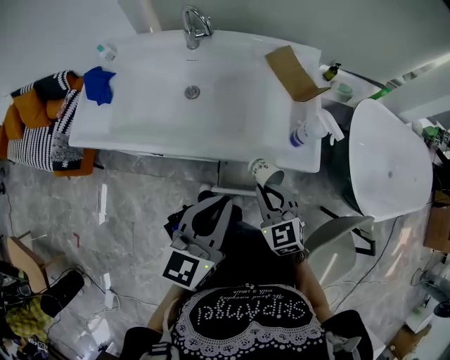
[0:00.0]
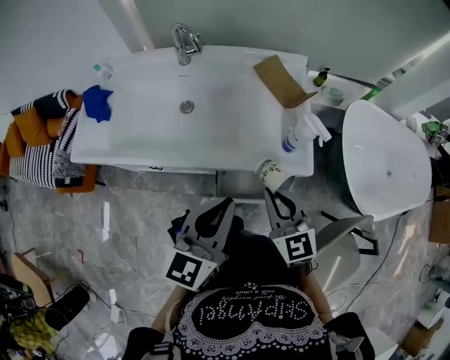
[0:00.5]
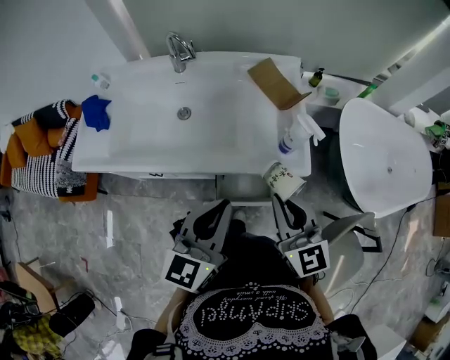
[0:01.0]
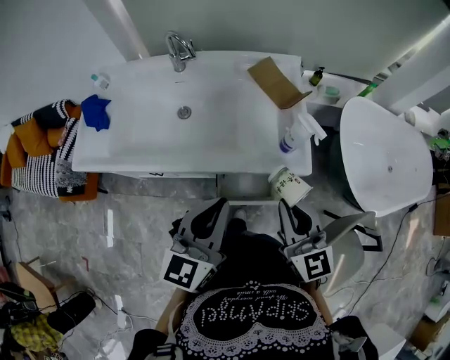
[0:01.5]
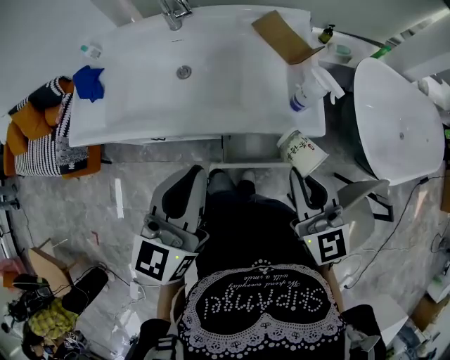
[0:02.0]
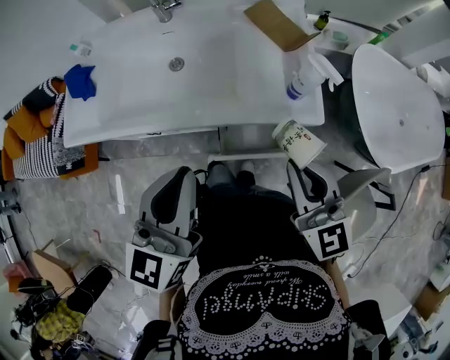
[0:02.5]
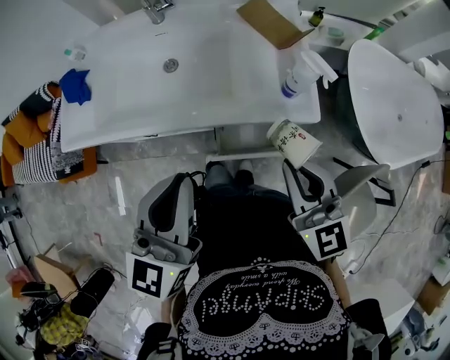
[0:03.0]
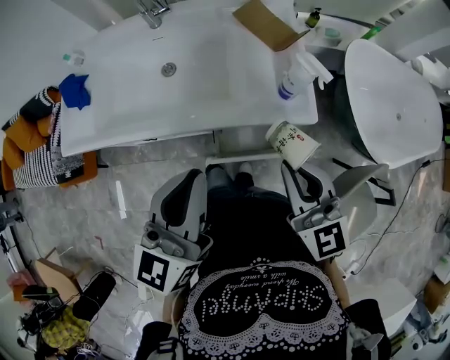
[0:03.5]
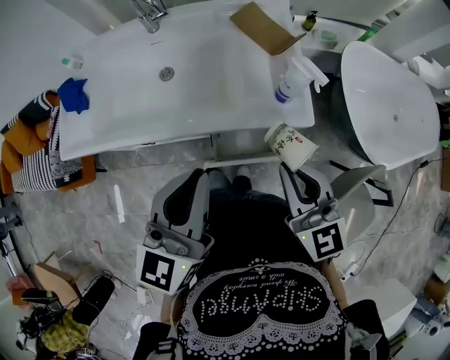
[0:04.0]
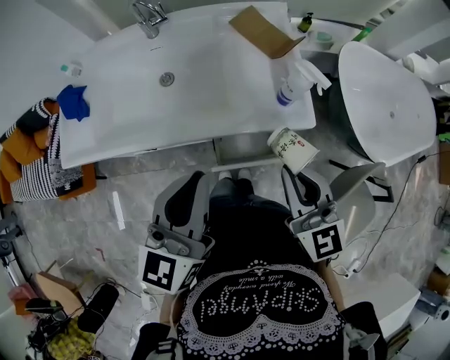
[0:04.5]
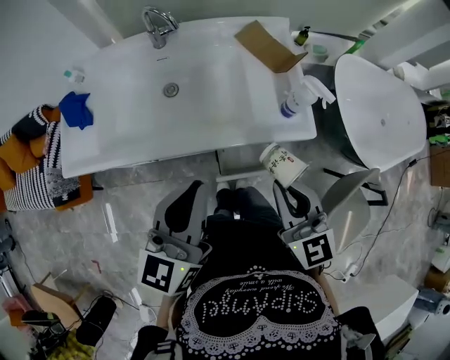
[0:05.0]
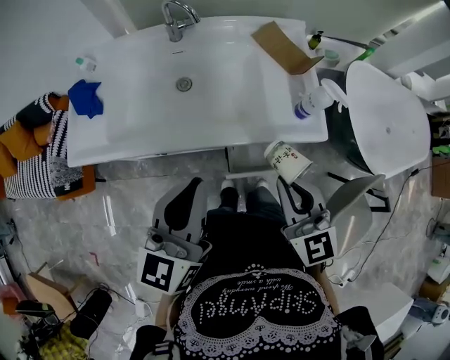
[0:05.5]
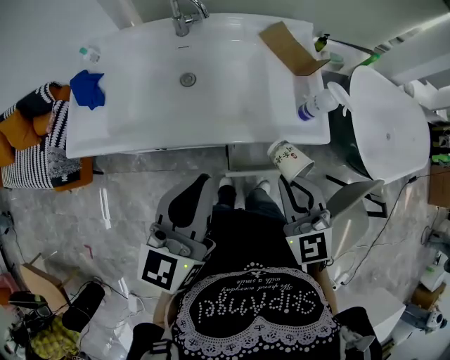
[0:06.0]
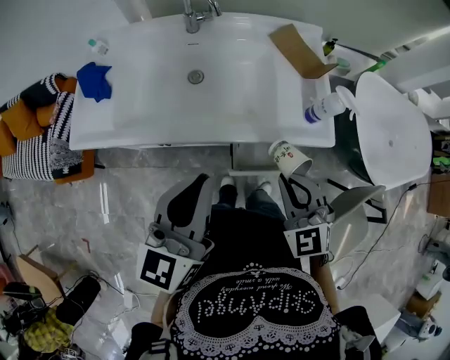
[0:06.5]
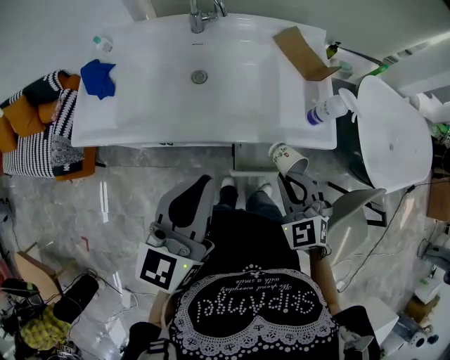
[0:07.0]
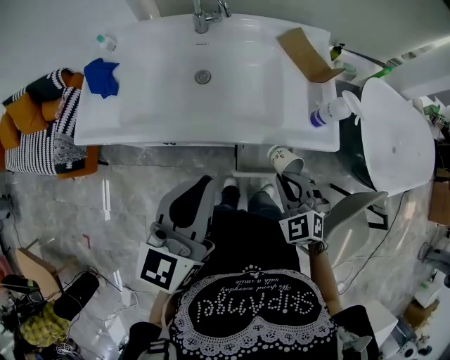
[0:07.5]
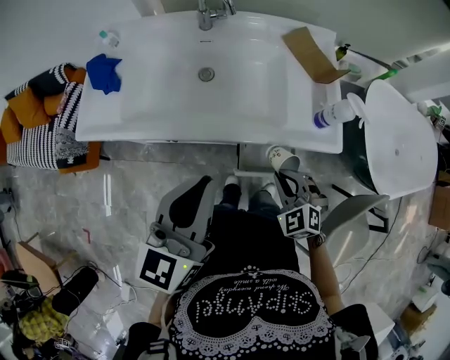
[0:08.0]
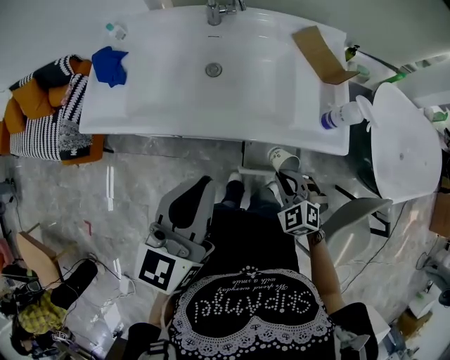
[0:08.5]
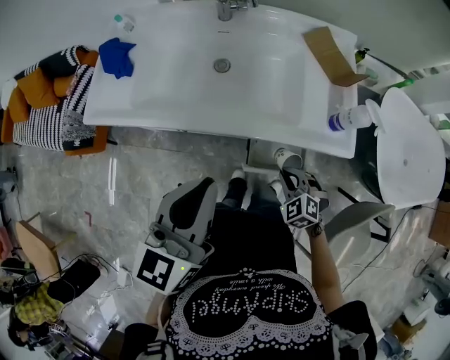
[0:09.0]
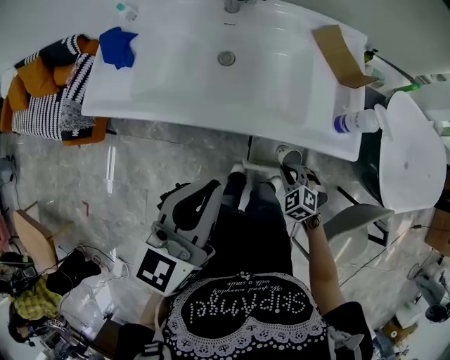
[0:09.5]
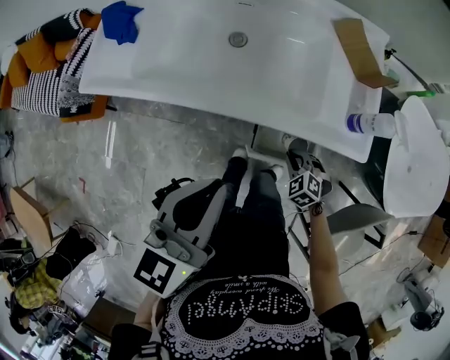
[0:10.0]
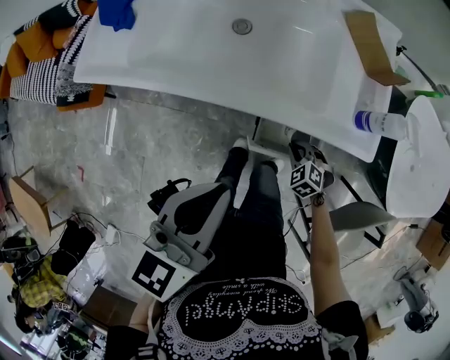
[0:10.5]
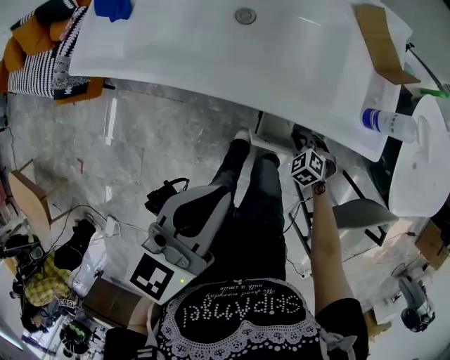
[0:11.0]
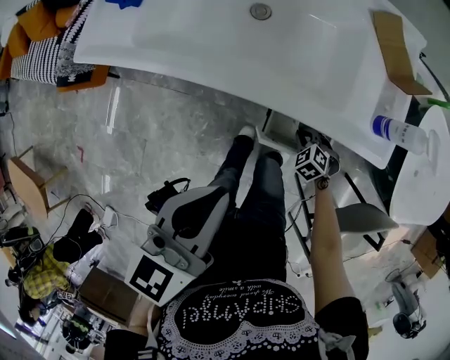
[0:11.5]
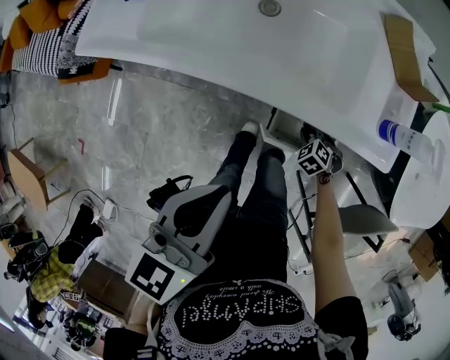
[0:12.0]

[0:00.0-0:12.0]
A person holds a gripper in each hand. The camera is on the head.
0:00.0 to 0:02.0: The left gripper moves approximately 5 cm. Meanwhile the right gripper shifts approximately 15 cm upward, and rotates some 30 degrees.
0:02.0 to 0:04.0: The grippers move only a little.
0:04.0 to 0:06.0: The grippers both shift to the left by approximately 10 cm. The right gripper swivels roughly 30 degrees.
0:06.0 to 0:08.0: The right gripper goes some 15 cm downward, and rotates some 30 degrees.
0:08.0 to 0:10.0: The right gripper heads downward, covering about 15 cm.
0:10.0 to 0:12.0: The right gripper travels downward by roughly 10 cm. Meanwhile the left gripper heads downward, covering approximately 5 cm.

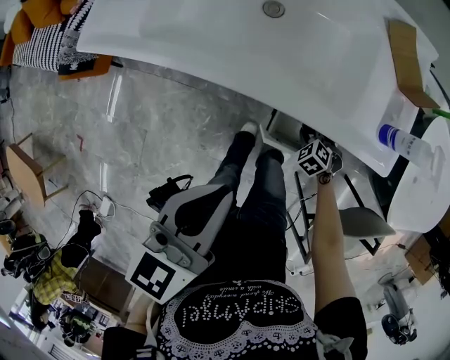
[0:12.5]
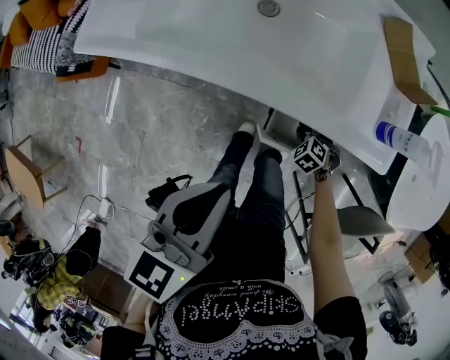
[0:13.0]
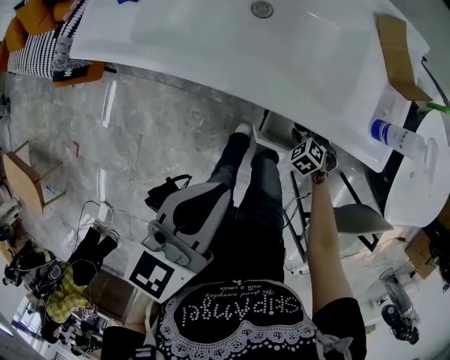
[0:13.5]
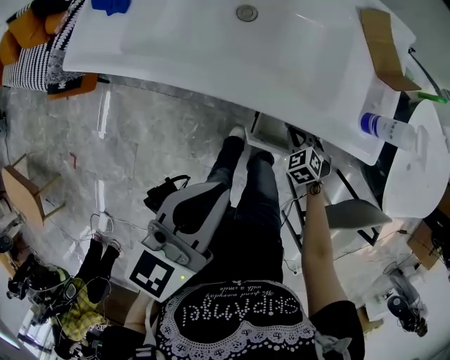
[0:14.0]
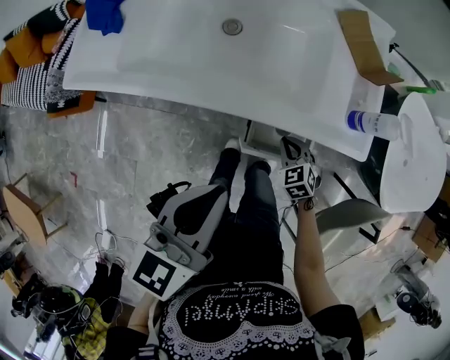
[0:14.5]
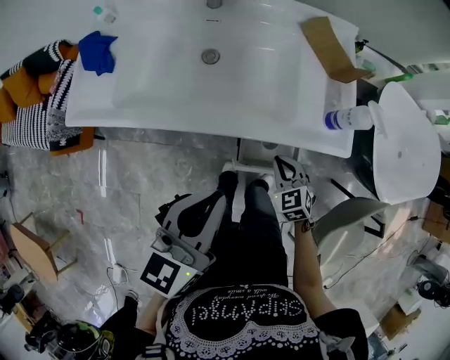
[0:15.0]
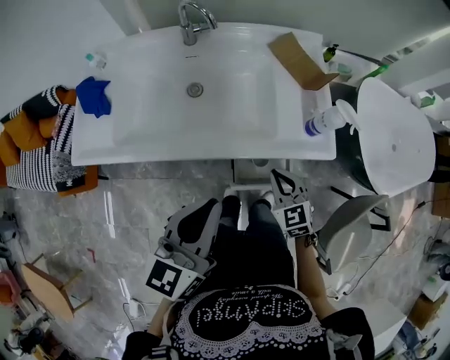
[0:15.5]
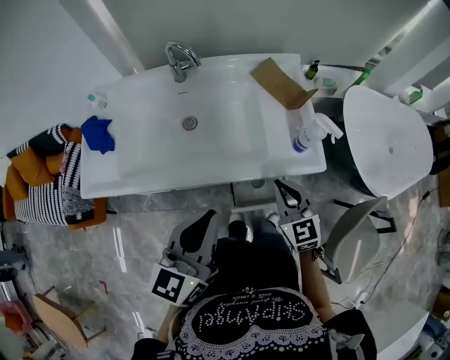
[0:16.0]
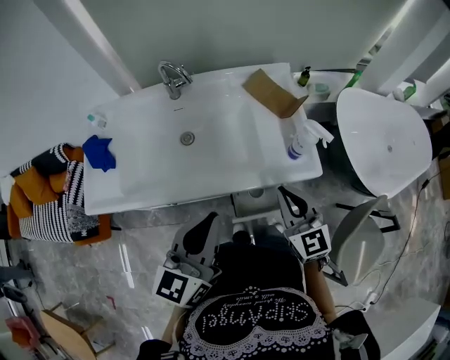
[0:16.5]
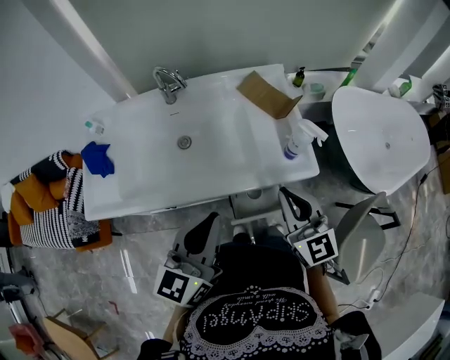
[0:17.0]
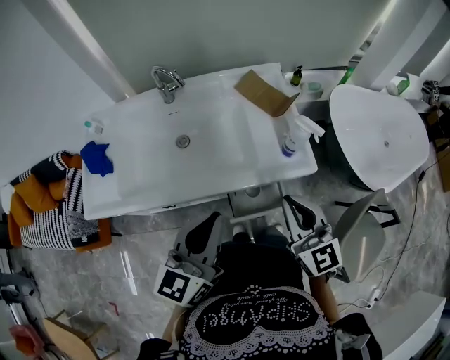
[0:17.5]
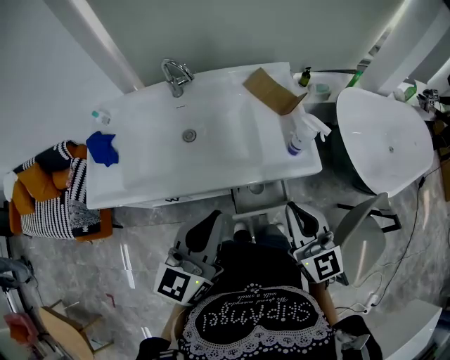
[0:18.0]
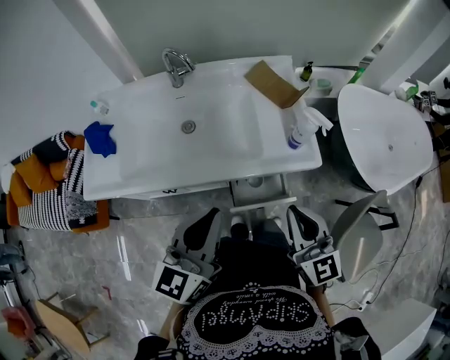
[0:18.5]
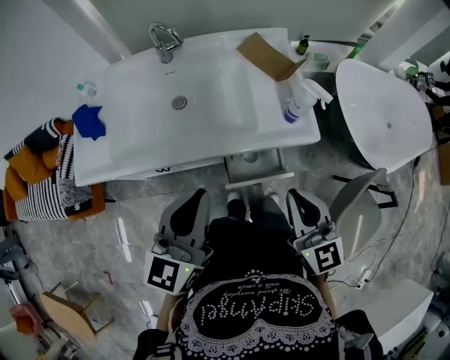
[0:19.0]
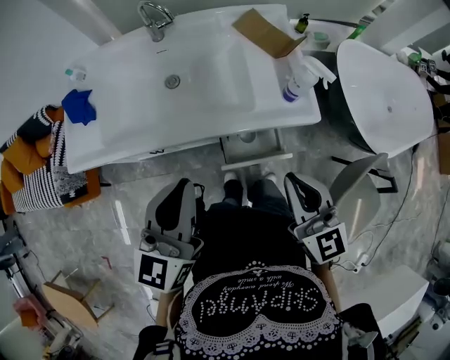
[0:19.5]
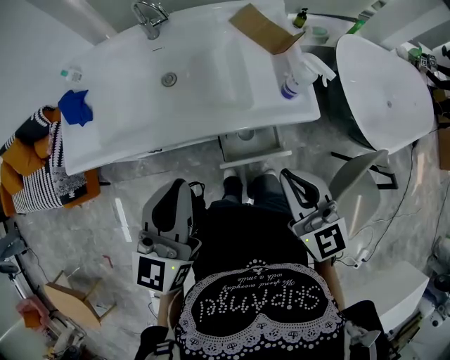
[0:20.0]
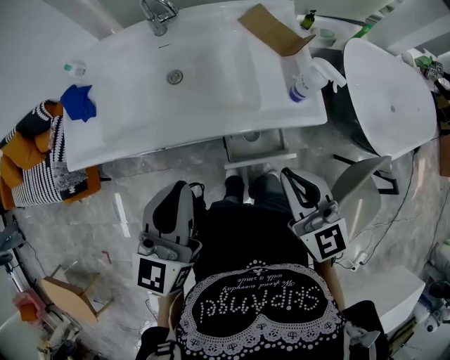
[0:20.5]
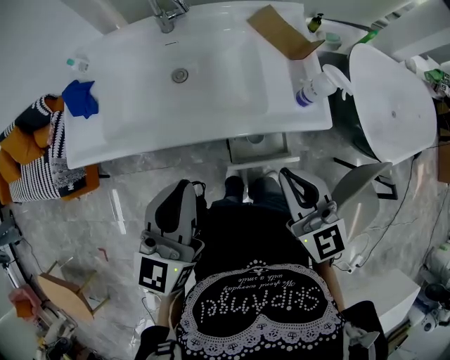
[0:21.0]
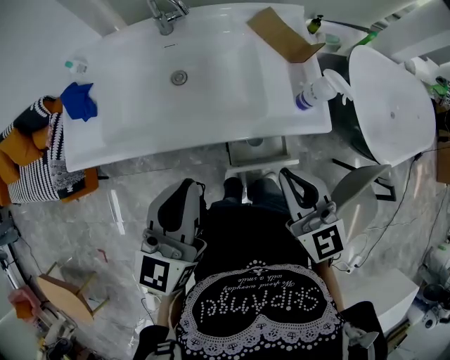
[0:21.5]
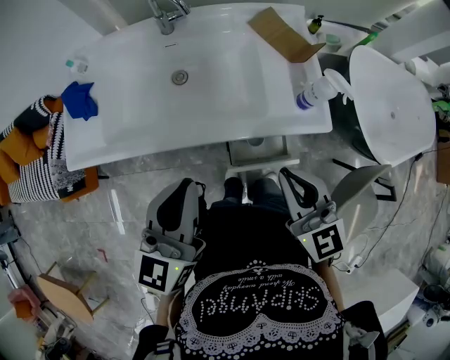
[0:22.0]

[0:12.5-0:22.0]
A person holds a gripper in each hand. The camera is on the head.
0:12.5 to 0:14.5: The right gripper is displaced upward by roughly 10 cm, and swivels approximately 30 degrees.
0:14.5 to 0:16.5: The left gripper travels upward by roughly 10 cm; the right gripper shifts roughly 30 cm upward, and tilts its fingers approximately 40 degrees upward.
0:16.5 to 0:18.0: The right gripper is displaced backward and upward by approximately 10 cm.
0:18.0 to 0:20.0: The grippers make only small movements.
0:20.0 to 0:22.0: The right gripper ends up about 5 cm from where it was.

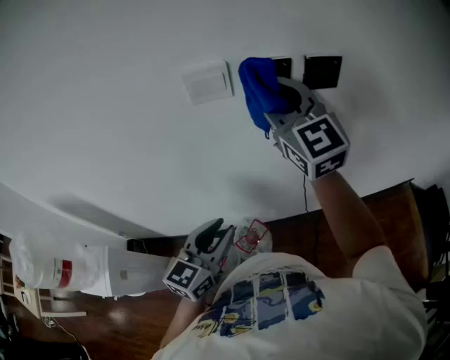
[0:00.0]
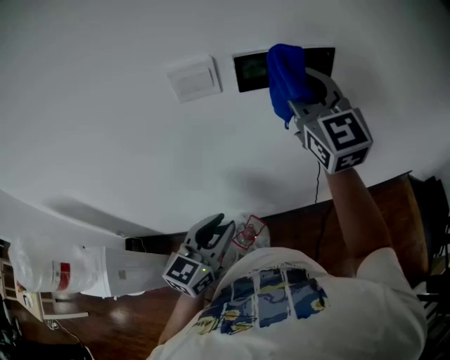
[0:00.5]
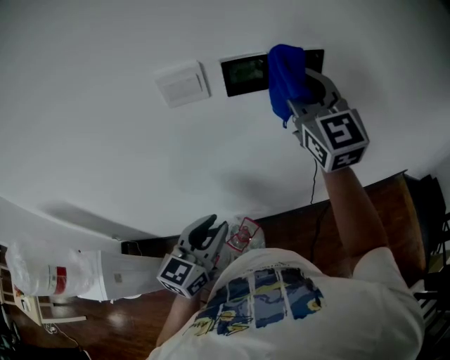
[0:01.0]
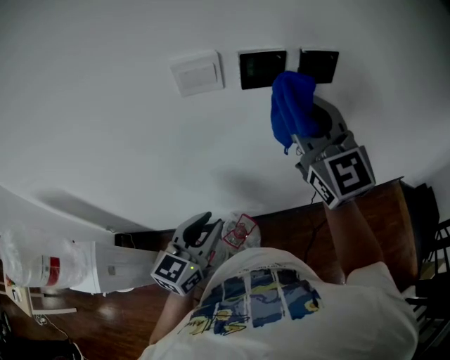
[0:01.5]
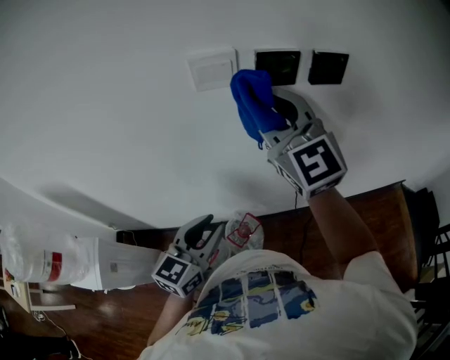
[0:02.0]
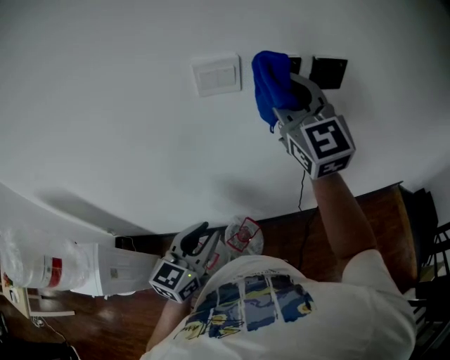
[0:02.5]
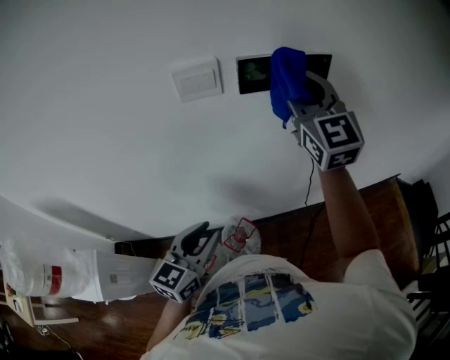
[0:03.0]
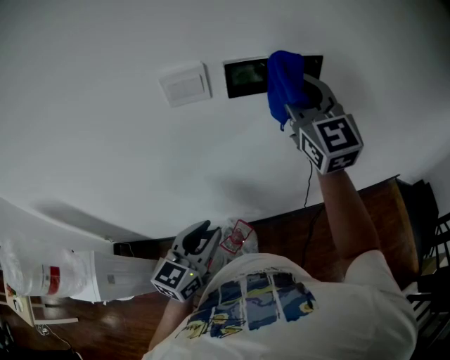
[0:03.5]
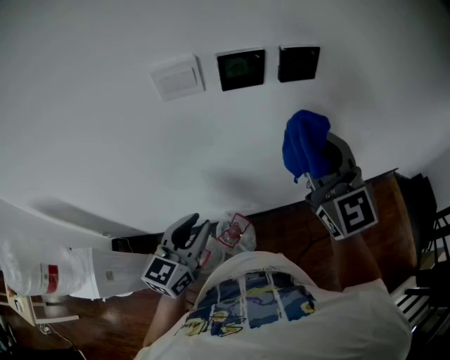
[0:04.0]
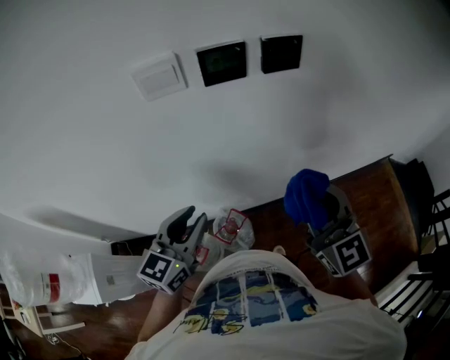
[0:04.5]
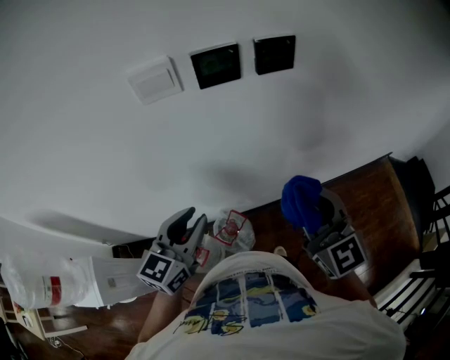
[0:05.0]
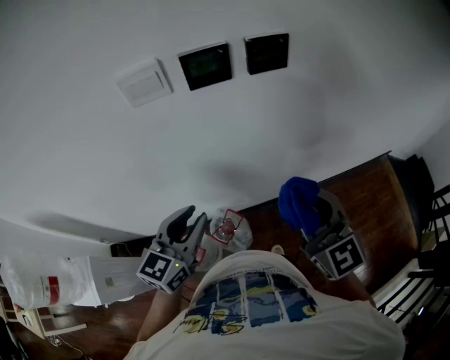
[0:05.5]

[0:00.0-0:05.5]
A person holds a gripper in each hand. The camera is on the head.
0:00.0 to 0:02.0: The right gripper goes to the right and returns, roughly 10 cm each way.
0:02.0 to 0:03.5: The right gripper moves to the right and forward, roughly 15 cm.
0:03.5 to 0:05.5: The right gripper goes approximately 25 cm backward and downward.
